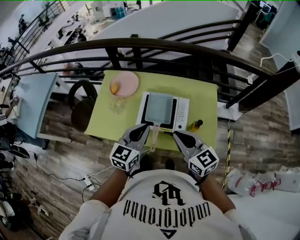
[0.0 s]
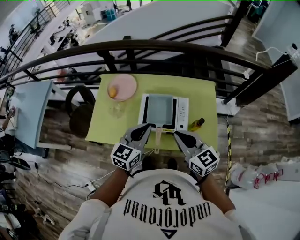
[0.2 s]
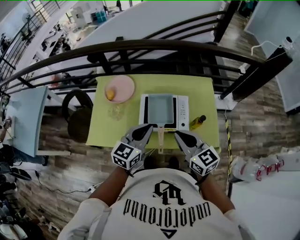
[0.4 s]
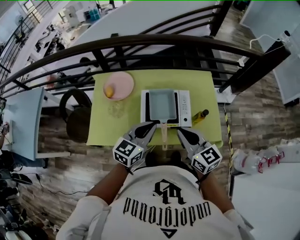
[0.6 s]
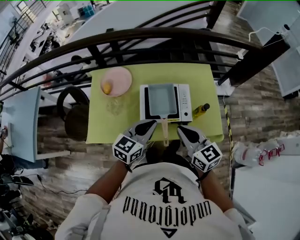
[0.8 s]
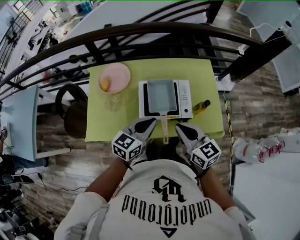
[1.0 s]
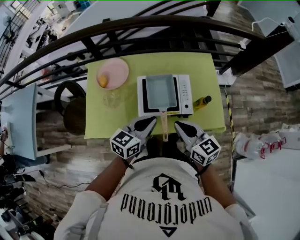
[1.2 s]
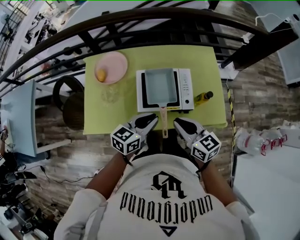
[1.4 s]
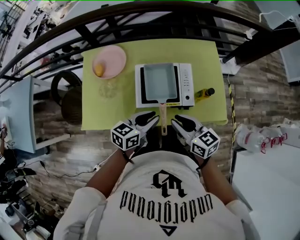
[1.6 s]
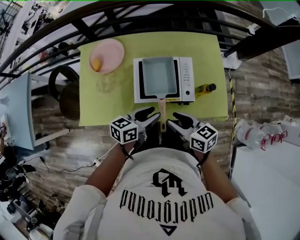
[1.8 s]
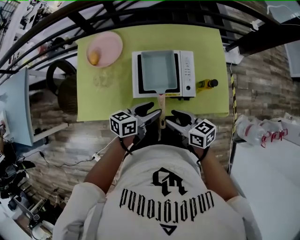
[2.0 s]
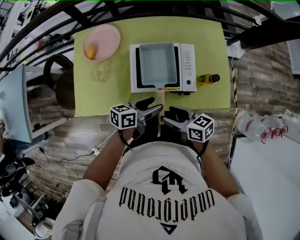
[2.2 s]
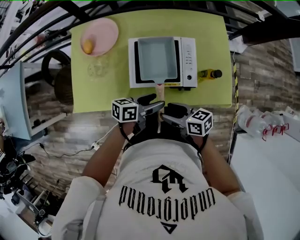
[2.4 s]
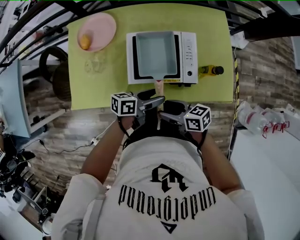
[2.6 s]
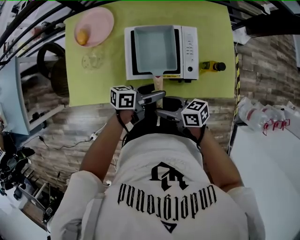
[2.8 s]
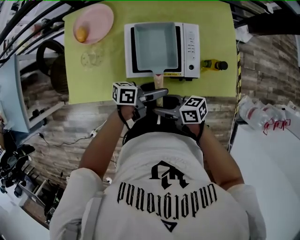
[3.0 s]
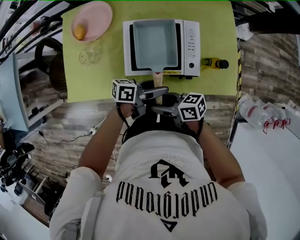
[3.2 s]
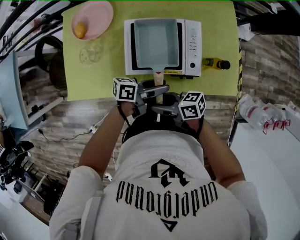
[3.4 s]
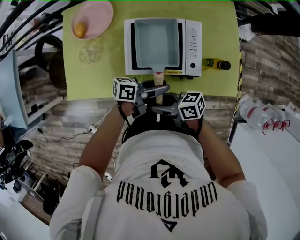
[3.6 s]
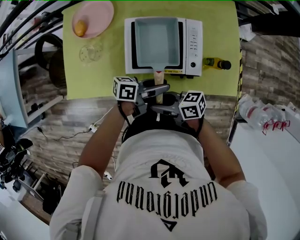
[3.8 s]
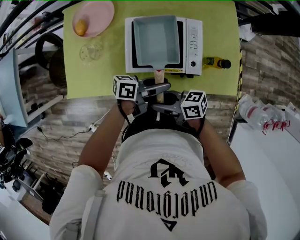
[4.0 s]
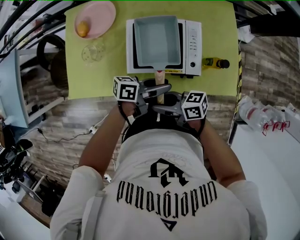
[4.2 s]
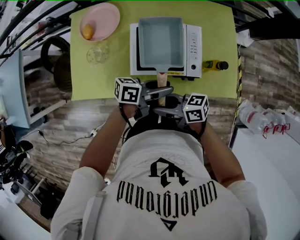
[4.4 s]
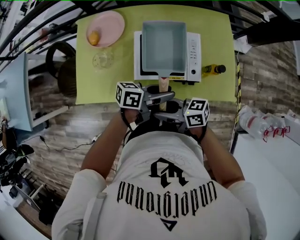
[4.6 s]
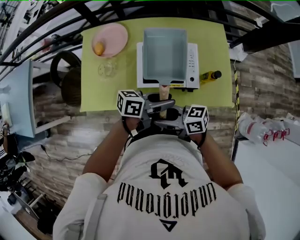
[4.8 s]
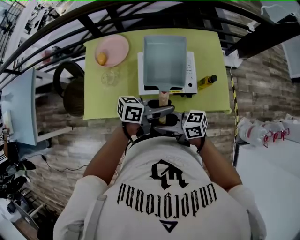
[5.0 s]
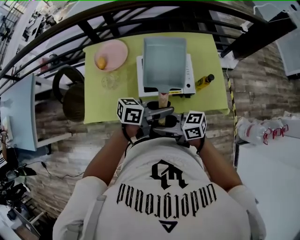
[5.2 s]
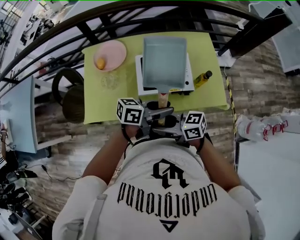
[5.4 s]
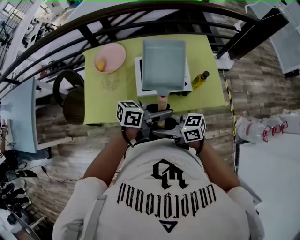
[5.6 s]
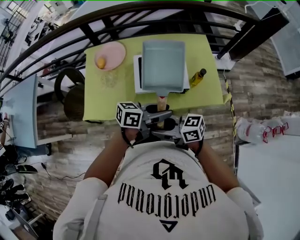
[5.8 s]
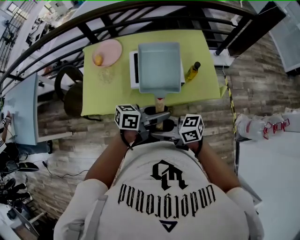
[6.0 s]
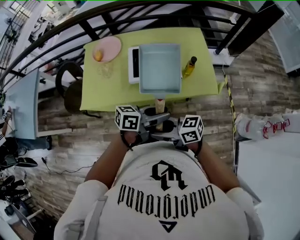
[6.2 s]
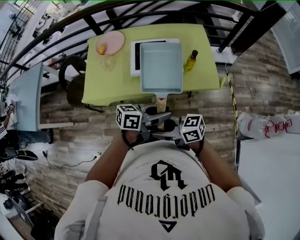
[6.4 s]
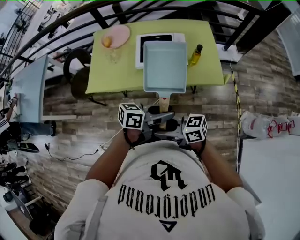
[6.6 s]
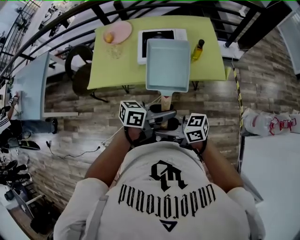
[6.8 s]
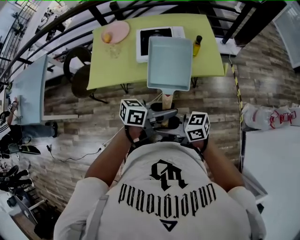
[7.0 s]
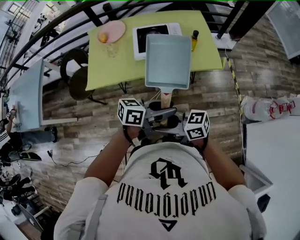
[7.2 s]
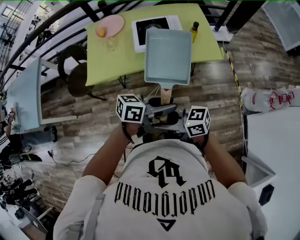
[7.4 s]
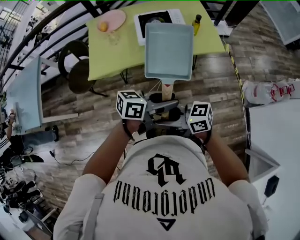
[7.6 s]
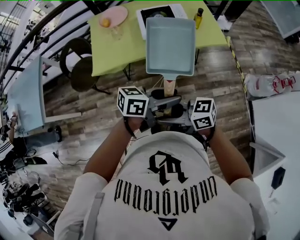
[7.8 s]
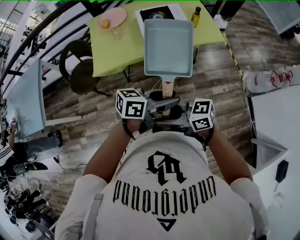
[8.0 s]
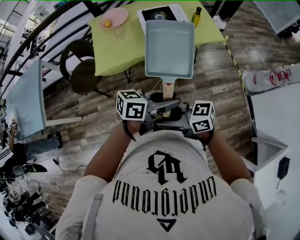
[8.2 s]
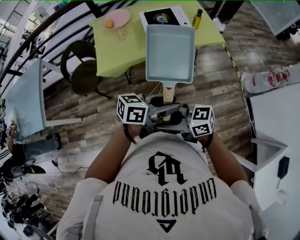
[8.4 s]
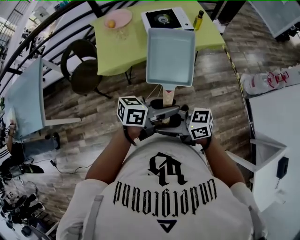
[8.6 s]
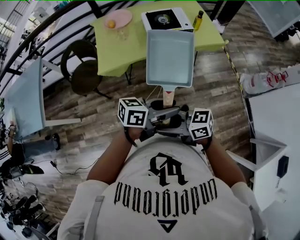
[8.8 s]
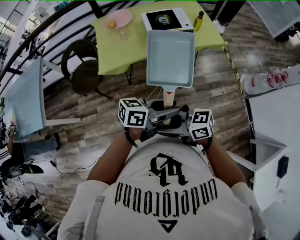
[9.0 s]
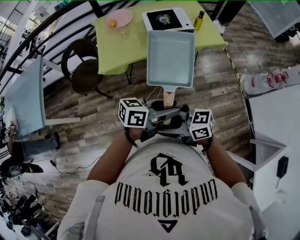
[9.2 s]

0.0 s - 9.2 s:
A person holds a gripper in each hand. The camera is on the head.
0.0 s - 1.6 s: The grippers both shift downward by some 15 cm. The right gripper swivels approximately 20 degrees. Meanwhile the left gripper swivels roughly 40 degrees.
1.6 s - 3.0 s: The grippers both shift downward by about 15 cm. The left gripper rotates some 40 degrees, and opens. Meanwhile the right gripper turns by approximately 40 degrees, and opens up.
3.0 s - 4.6 s: Both grippers move upward, roughly 10 cm. The left gripper closes its fingers. The right gripper closes up.
4.6 s - 6.2 s: The left gripper moves some 20 cm, while the right gripper moves roughly 20 cm.
6.2 s - 7.6 s: The left gripper moves approximately 25 cm; the right gripper shifts by roughly 20 cm.
7.6 s - 9.2 s: The left gripper ends up some 15 cm from where it was, while the right gripper ends up about 15 cm from where it was.

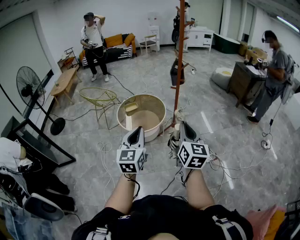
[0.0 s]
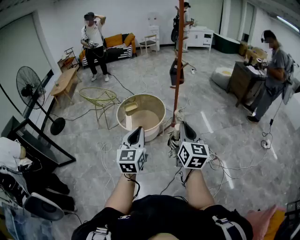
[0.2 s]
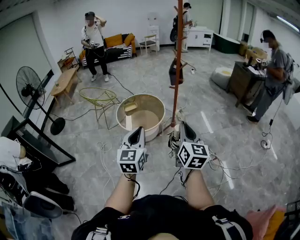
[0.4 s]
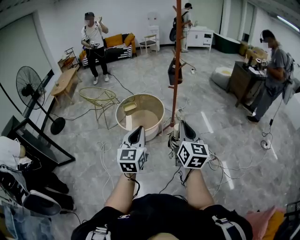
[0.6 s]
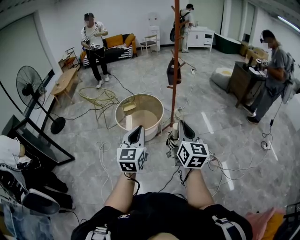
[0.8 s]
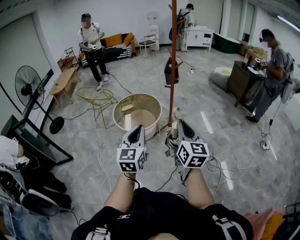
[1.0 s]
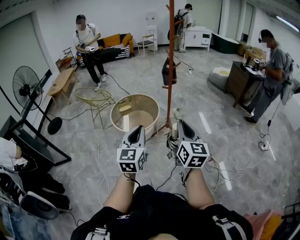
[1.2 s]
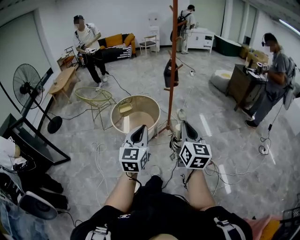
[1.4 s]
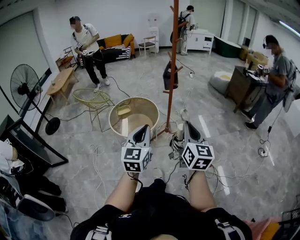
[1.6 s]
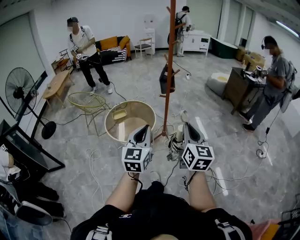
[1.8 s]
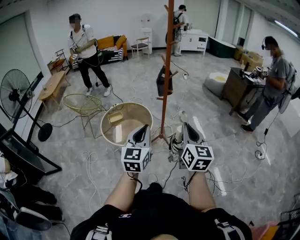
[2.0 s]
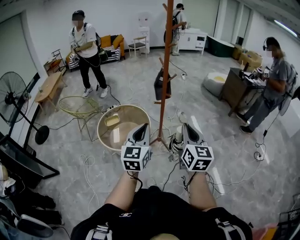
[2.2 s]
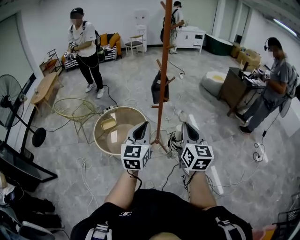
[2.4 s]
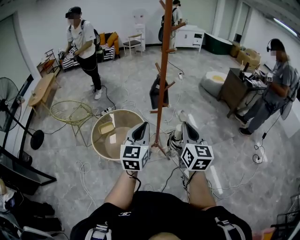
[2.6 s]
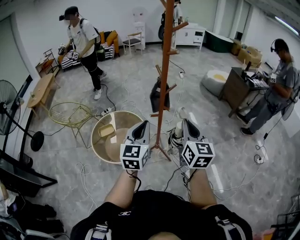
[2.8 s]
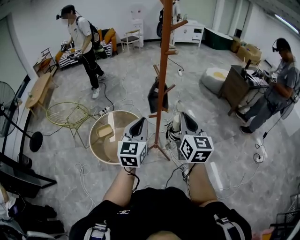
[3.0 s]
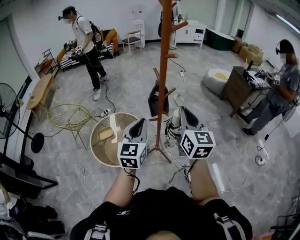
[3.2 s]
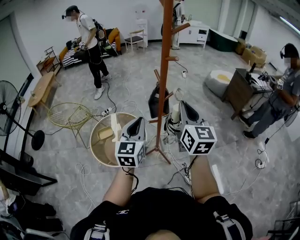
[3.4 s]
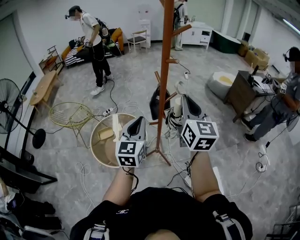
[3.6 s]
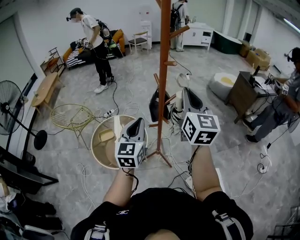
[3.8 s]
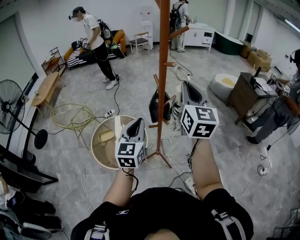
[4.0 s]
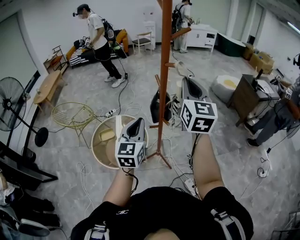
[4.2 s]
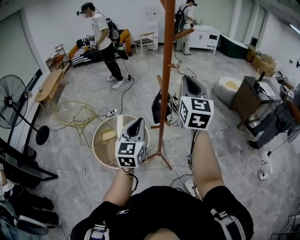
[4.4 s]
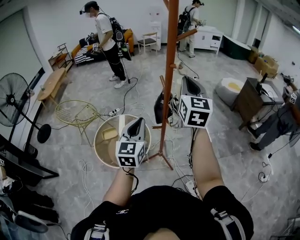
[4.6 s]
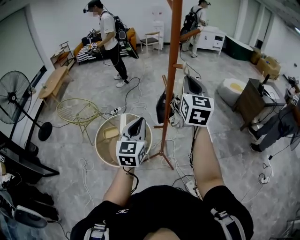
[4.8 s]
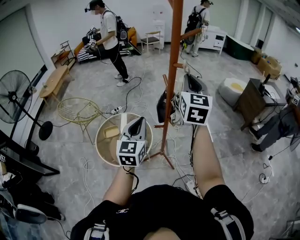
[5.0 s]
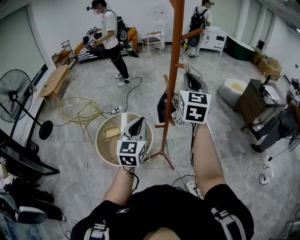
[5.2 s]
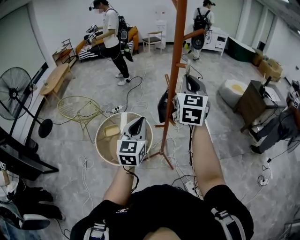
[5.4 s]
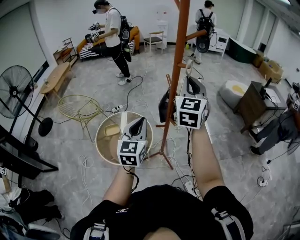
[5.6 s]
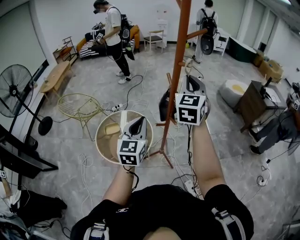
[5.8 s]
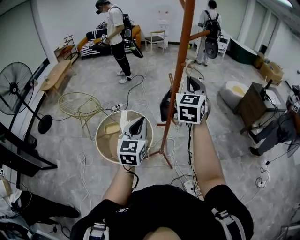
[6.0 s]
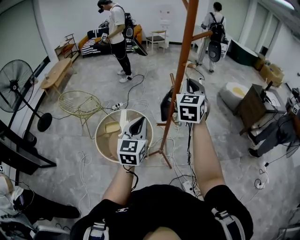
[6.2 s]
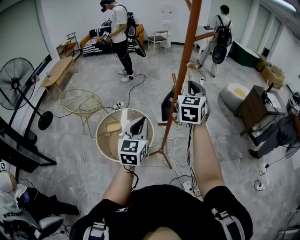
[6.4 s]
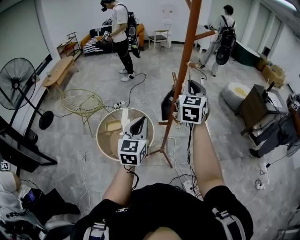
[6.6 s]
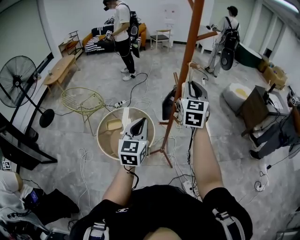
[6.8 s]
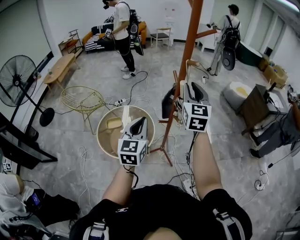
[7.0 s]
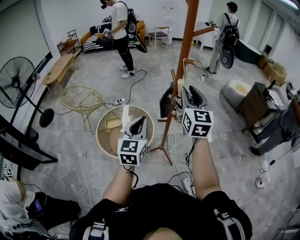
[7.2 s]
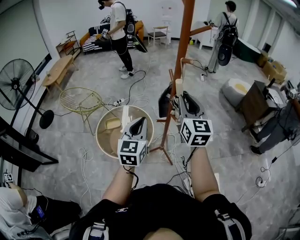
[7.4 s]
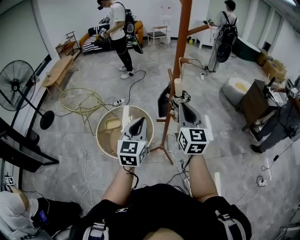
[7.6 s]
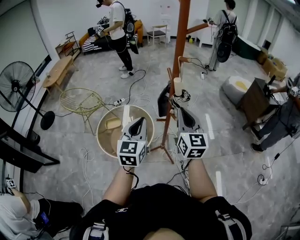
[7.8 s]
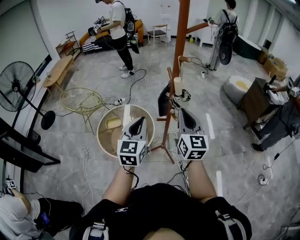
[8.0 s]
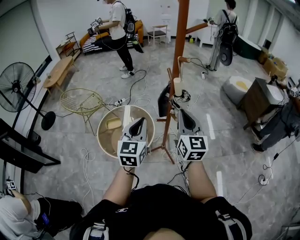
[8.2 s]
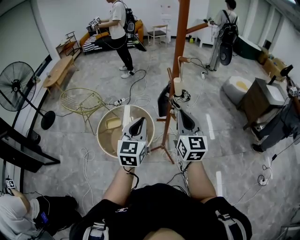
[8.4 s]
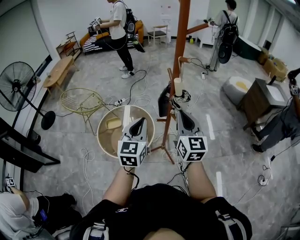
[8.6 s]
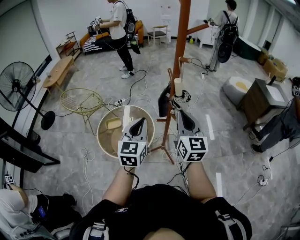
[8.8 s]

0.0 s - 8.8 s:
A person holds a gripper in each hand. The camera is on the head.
0.0 s - 1.4 s: Both grippers travel together to the right, roughly 10 cm.
1.4 s - 3.0 s: The two grippers travel together, forward, roughly 50 cm.
3.0 s - 4.4 s: The left gripper is displaced forward by about 10 cm; the right gripper travels forward and upward by some 20 cm.
4.4 s - 5.8 s: The grippers move only a little.
5.8 s - 7.4 s: The right gripper goes roughly 10 cm downward and backward, and rotates some 30 degrees.
7.4 s - 8.8 s: The right gripper moves downward, roughly 5 cm.

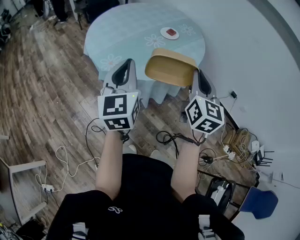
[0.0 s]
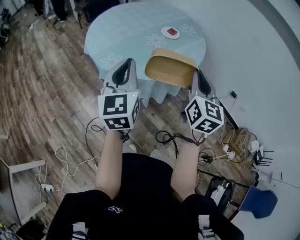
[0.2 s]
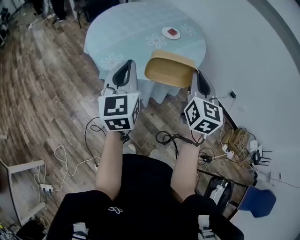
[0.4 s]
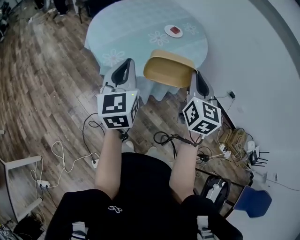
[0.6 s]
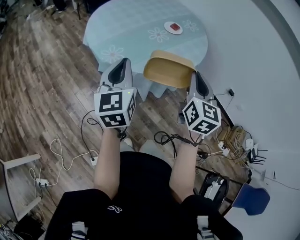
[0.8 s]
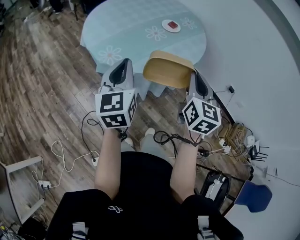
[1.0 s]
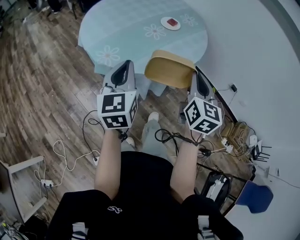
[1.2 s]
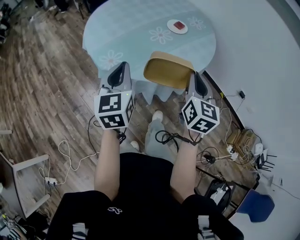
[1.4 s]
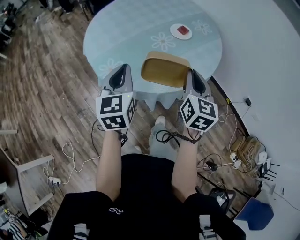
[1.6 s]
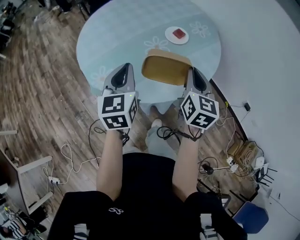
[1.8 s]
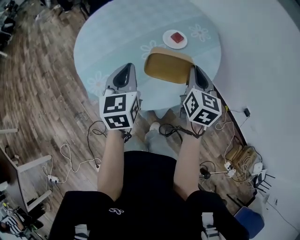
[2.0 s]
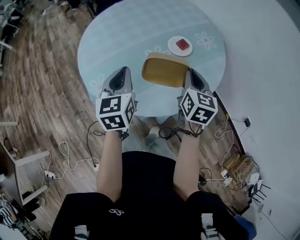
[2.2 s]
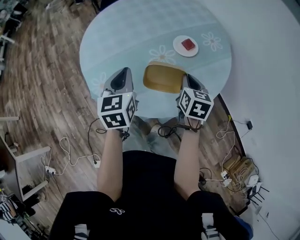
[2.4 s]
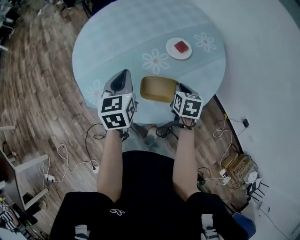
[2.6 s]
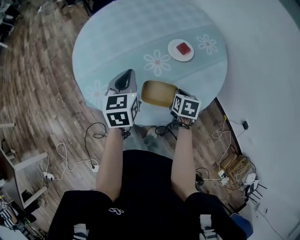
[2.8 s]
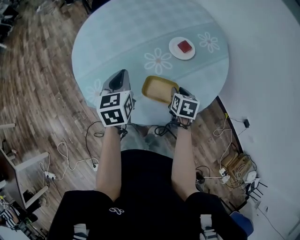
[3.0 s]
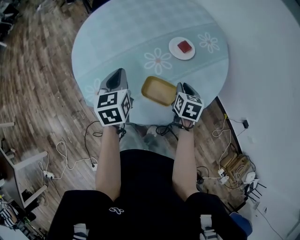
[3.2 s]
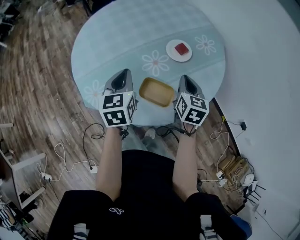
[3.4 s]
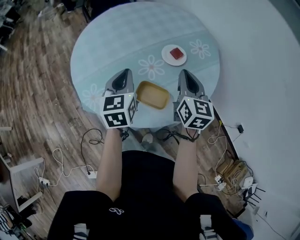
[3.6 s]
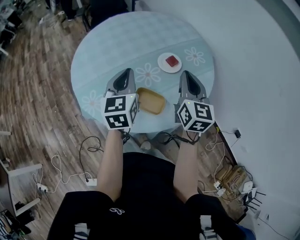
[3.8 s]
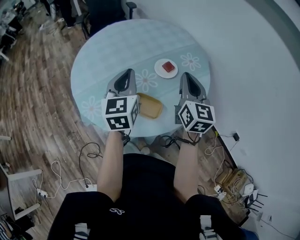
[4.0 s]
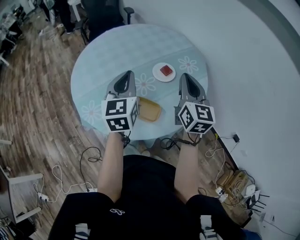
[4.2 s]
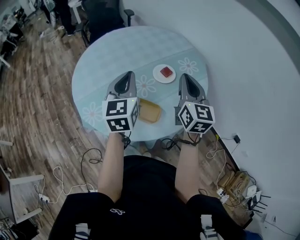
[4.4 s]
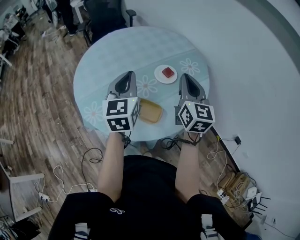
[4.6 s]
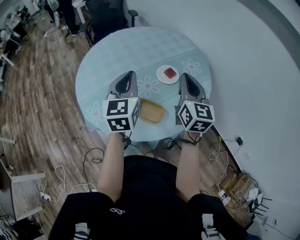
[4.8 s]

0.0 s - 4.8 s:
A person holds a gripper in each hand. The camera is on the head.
0.0 s - 1.6 s: Both grippers travel together forward and downward, some 20 cm.
1.6 s - 3.2 s: The grippers both shift forward and downward by roughly 25 cm. The right gripper turns by approximately 30 degrees.
3.2 s - 4.8 s: The left gripper shifts about 20 cm upward and to the right, and changes its angle by some 20 degrees; the right gripper heads upward, covering some 25 cm, and tilts its fingers roughly 40 degrees upward.

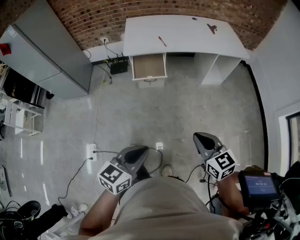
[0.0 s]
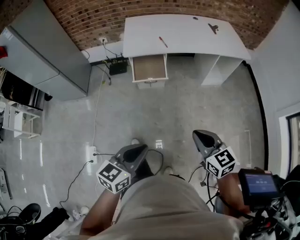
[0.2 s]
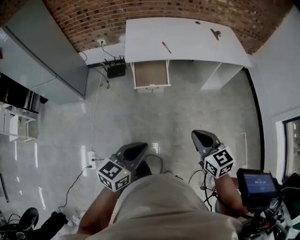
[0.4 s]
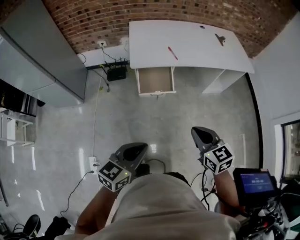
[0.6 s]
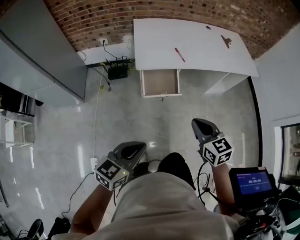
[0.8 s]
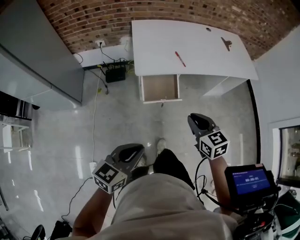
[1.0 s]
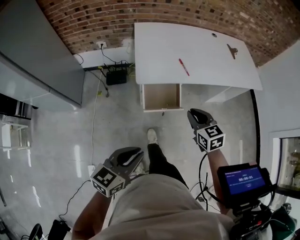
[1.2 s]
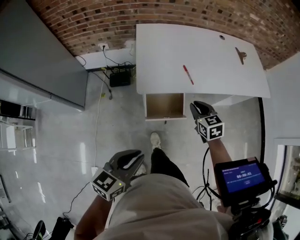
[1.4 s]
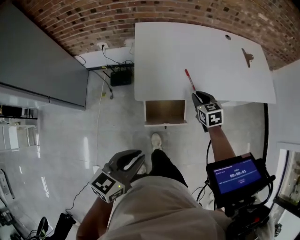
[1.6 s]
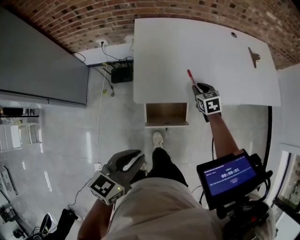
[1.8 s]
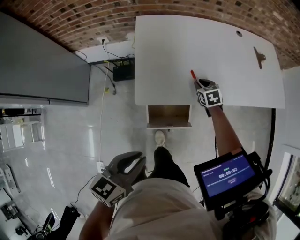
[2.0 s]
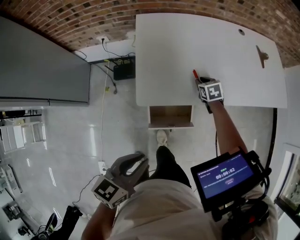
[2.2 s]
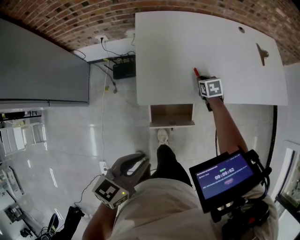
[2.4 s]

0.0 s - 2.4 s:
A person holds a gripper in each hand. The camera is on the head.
0.0 s - 1.2 s: Both grippers move forward and to the left, approximately 40 cm.
1.2 s - 2.4 s: The left gripper travels forward by roughly 20 cm, while the right gripper moves forward and downward, some 40 cm, and turns by roughly 30 degrees.
